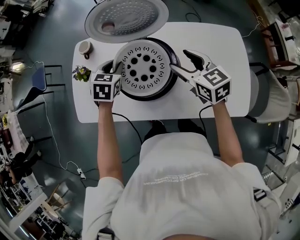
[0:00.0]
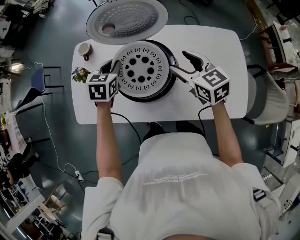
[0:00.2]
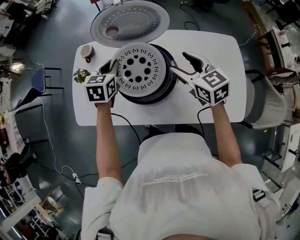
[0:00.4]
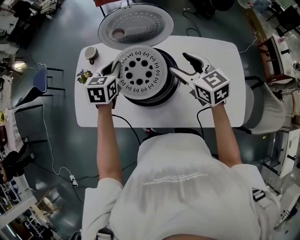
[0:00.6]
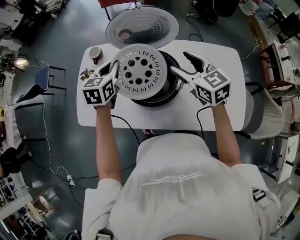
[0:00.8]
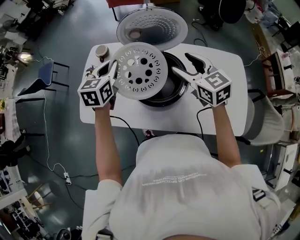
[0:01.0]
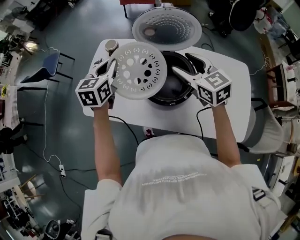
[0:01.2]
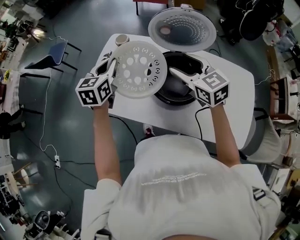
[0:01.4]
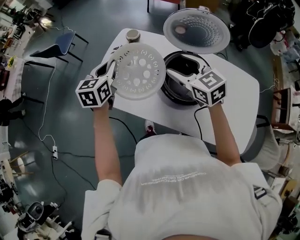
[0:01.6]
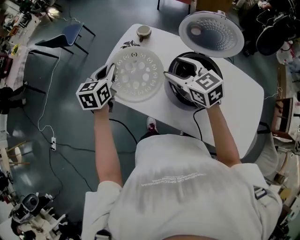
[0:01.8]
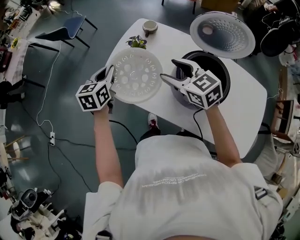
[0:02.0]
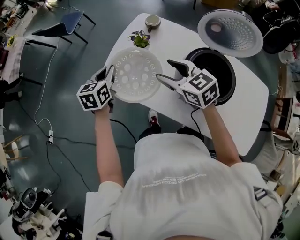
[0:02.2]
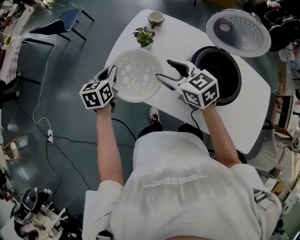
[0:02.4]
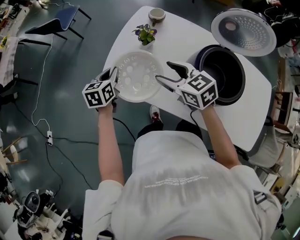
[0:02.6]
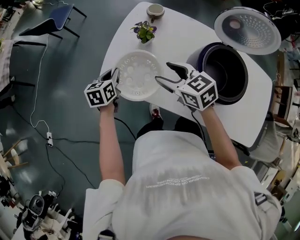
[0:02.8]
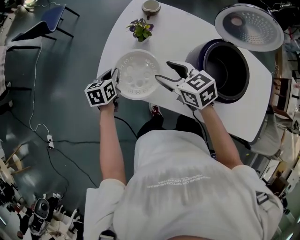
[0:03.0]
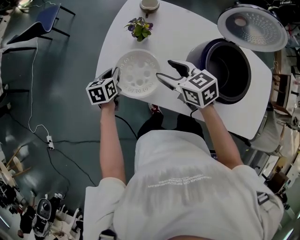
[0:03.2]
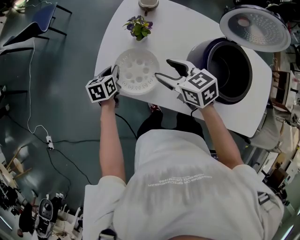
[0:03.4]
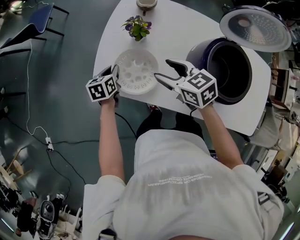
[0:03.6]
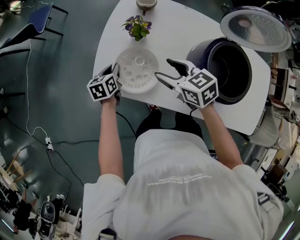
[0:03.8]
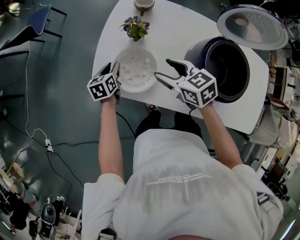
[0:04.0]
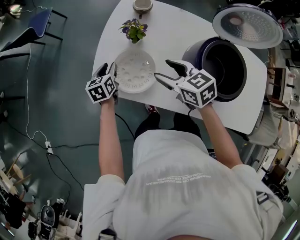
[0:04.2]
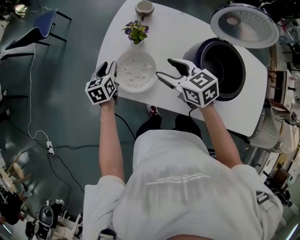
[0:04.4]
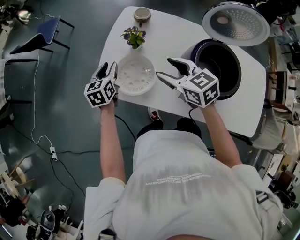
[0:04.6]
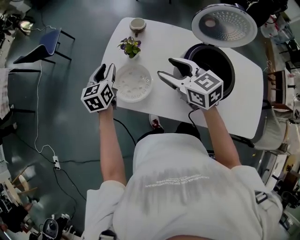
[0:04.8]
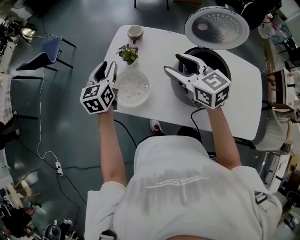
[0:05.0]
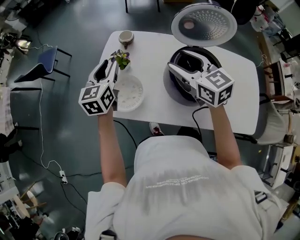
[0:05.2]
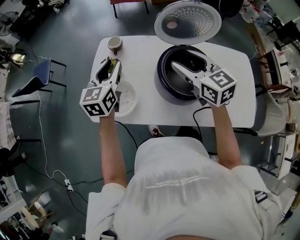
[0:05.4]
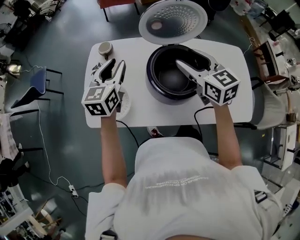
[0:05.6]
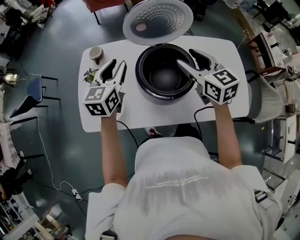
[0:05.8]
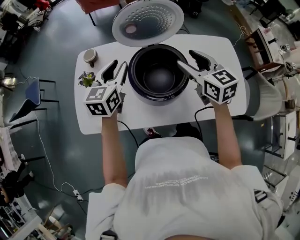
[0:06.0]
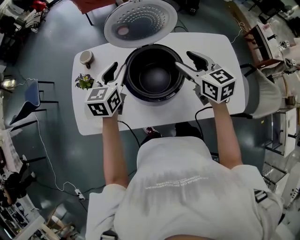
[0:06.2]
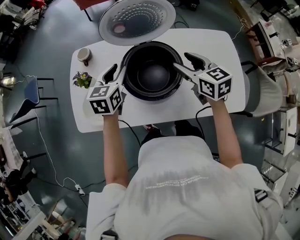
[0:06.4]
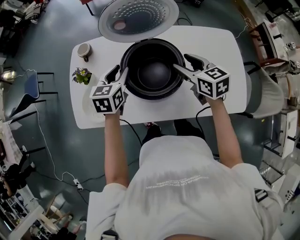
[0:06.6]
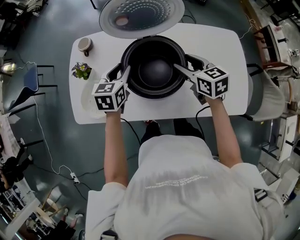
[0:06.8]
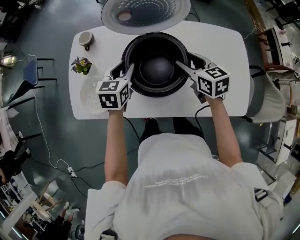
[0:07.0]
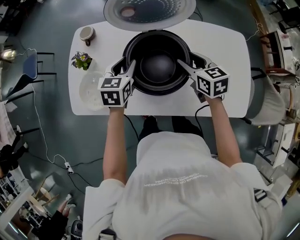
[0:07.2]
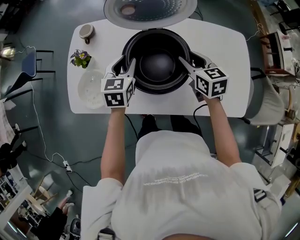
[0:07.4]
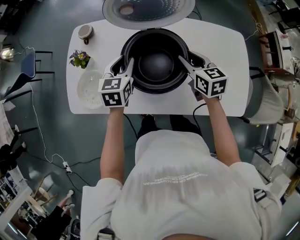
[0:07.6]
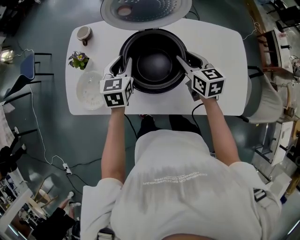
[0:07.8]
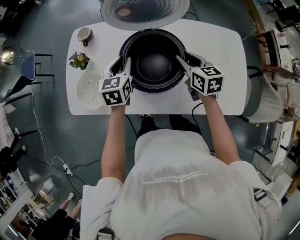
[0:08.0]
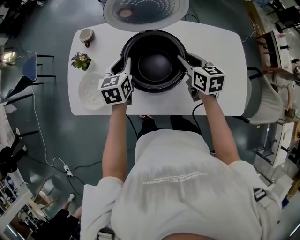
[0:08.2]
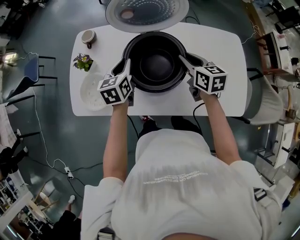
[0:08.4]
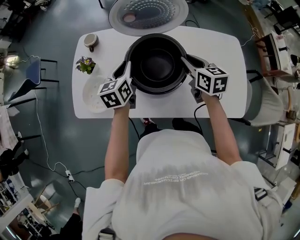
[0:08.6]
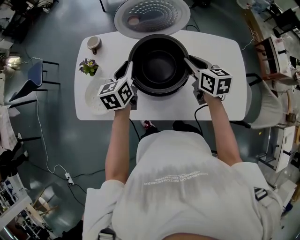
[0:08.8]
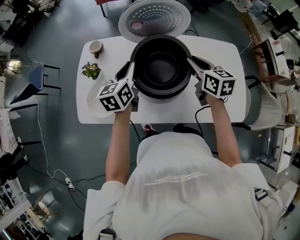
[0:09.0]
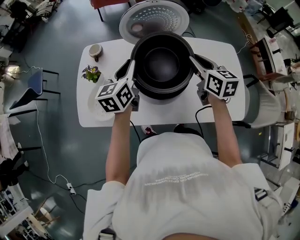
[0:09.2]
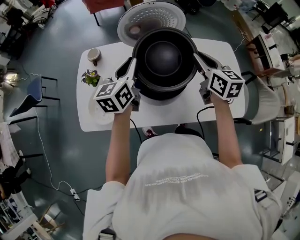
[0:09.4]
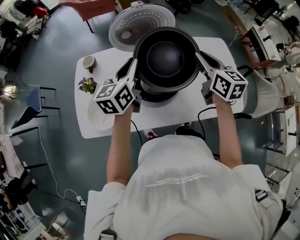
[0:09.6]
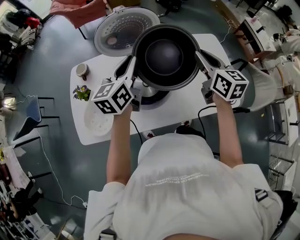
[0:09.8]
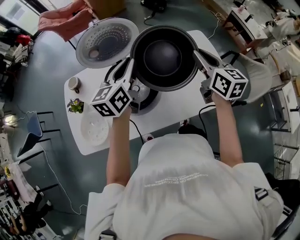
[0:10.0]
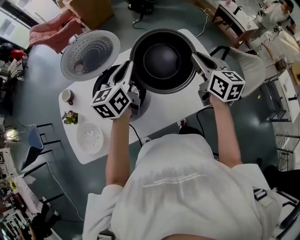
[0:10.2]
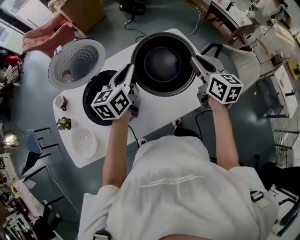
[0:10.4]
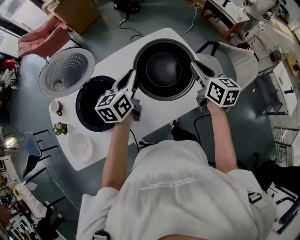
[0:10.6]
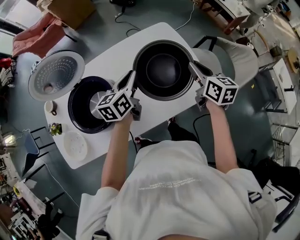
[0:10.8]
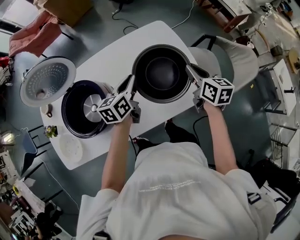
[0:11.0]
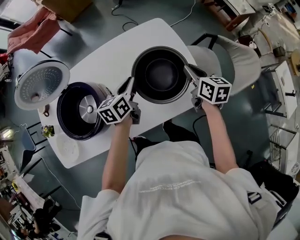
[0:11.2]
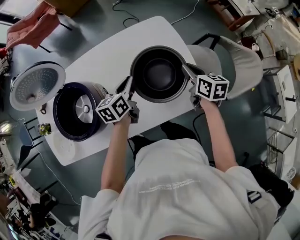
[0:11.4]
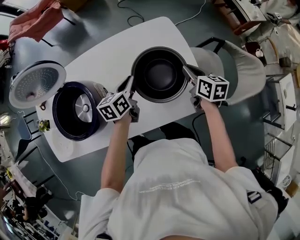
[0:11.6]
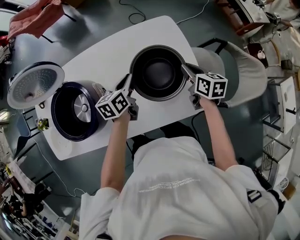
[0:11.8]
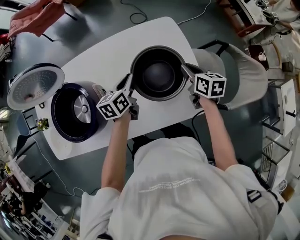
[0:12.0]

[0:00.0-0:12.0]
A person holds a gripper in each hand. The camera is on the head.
0:00.0 to 0:01.6: Both grippers travel together to the left and upward, roughly 25 cm. The right gripper changes its angle by about 30 degrees. Meanwhile the left gripper turns by approximately 40 degrees.
0:01.6 to 0:03.0: The left gripper is displaced downward and to the left by approximately 30 cm, and turns by about 30 degrees, while the right gripper goes about 25 cm to the left and downward, and changes its angle by approximately 20 degrees.
0:03.0 to 0:04.4: The left gripper opens.
0:04.4 to 0:06.0: The left gripper changes place by approximately 40 cm, and changes its angle by roughly 40 degrees. The right gripper changes place by about 35 cm, and turns by about 40 degrees.
0:06.0 to 0:07.6: Both grippers travel together downward, about 10 cm. The right gripper closes up.
0:07.6 to 0:09.0: Both grippers move upward, about 5 cm. The left gripper turns by about 20 degrees.
0:09.0 to 0:10.4: The right gripper changes place by some 30 cm, and turns by roughly 30 degrees, while the left gripper moves approximately 30 cm, and rotates about 30 degrees.
0:10.4 to 0:12.0: The right gripper travels downward, forward and to the right by some 30 cm, and turns by about 30 degrees. Meanwhile the left gripper heads downward and to the right, covering roughly 25 cm, and swivels about 30 degrees.

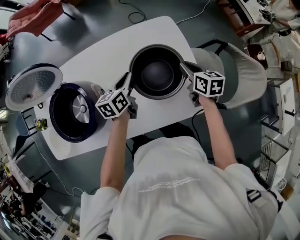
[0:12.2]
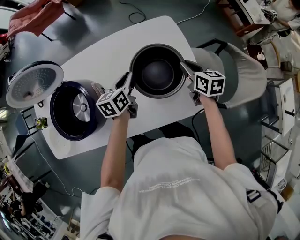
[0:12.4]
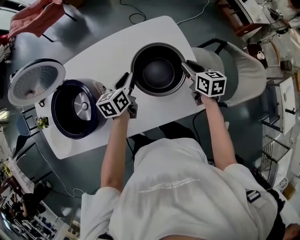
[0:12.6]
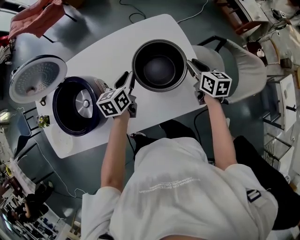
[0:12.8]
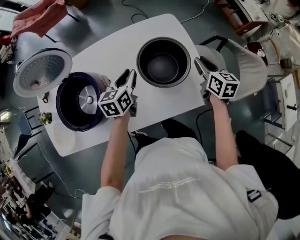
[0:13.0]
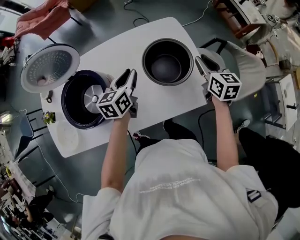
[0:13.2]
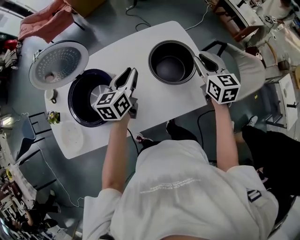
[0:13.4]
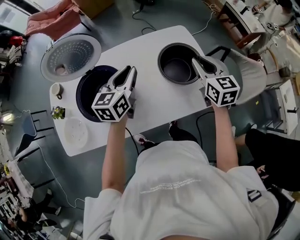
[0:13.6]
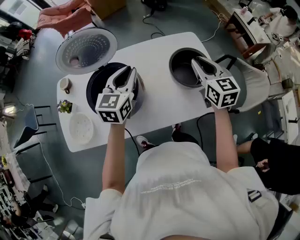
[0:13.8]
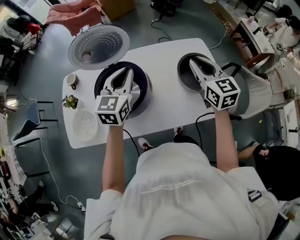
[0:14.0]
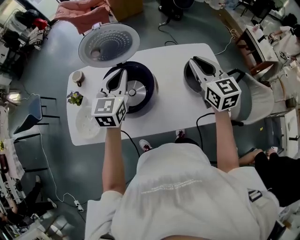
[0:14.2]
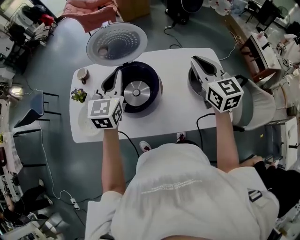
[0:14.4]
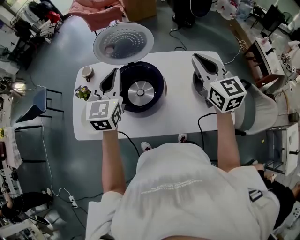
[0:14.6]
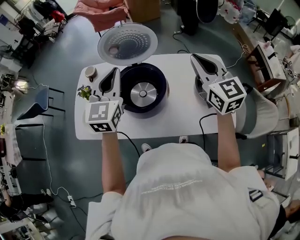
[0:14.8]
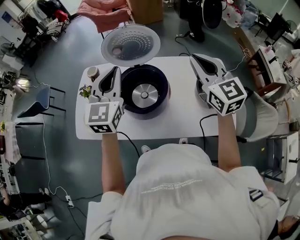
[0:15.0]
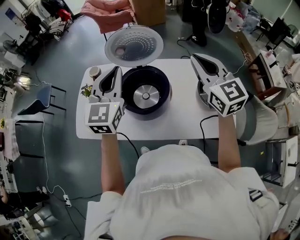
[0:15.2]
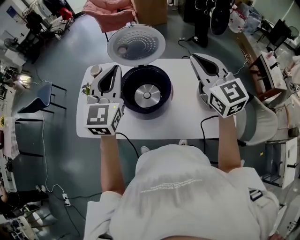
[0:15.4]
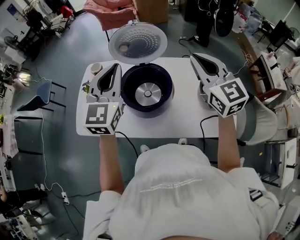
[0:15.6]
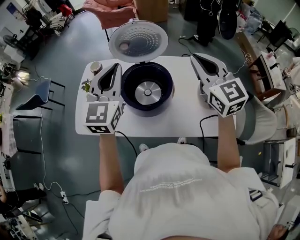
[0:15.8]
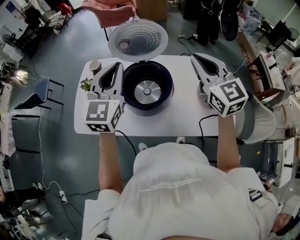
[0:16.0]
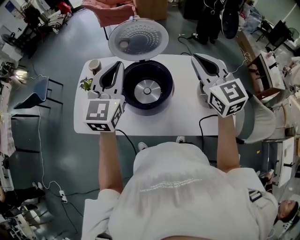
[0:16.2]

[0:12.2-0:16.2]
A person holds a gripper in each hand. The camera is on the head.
0:12.2 to 0:13.6: The grippers both shift upward and to the left by some 20 cm. The left gripper turns by about 30 degrees, while the right gripper turns by some 30 degrees.
0:13.6 to 0:14.8: Both grippers move to the left and upward, some 25 cm. The left gripper changes its angle by some 40 degrees. The right gripper changes its angle by about 30 degrees.
0:14.8 to 0:16.2: The right gripper heads to the left, covering approximately 5 cm.

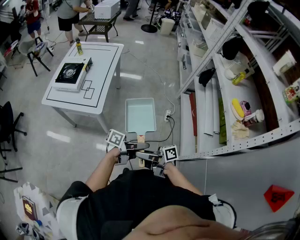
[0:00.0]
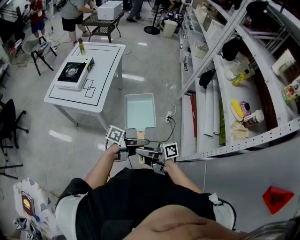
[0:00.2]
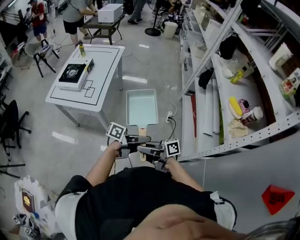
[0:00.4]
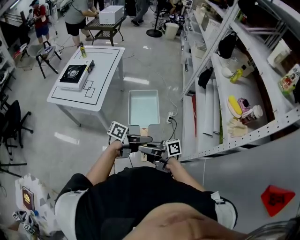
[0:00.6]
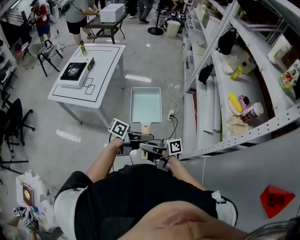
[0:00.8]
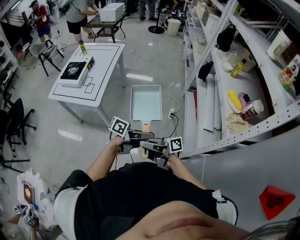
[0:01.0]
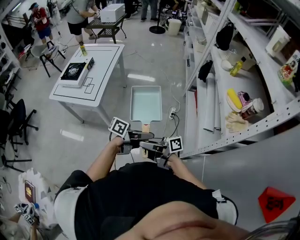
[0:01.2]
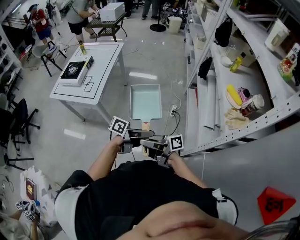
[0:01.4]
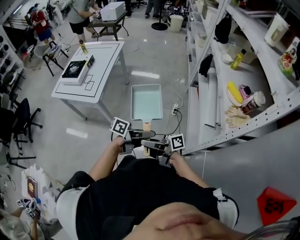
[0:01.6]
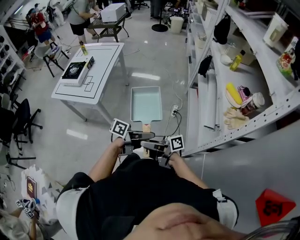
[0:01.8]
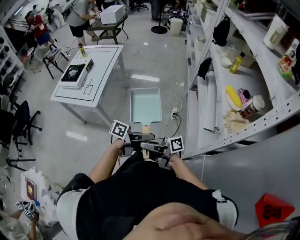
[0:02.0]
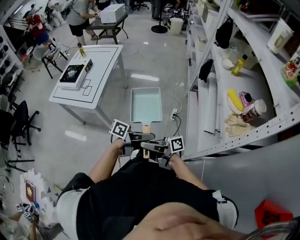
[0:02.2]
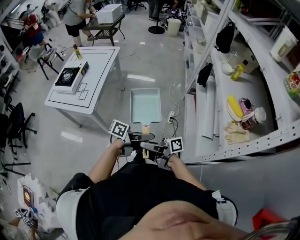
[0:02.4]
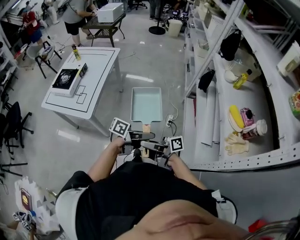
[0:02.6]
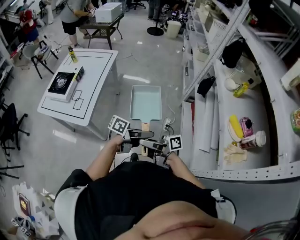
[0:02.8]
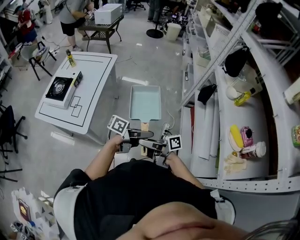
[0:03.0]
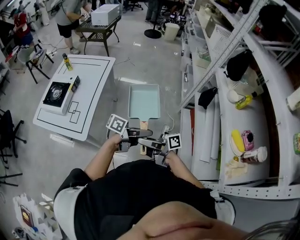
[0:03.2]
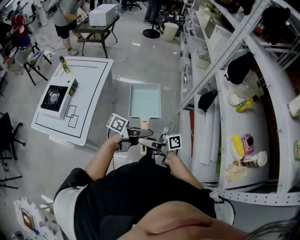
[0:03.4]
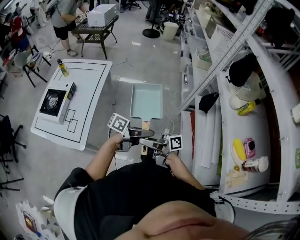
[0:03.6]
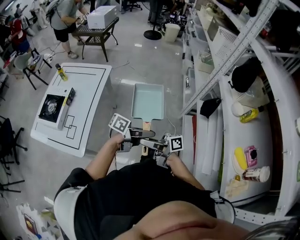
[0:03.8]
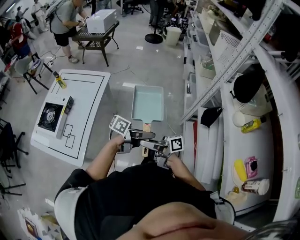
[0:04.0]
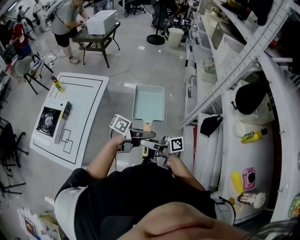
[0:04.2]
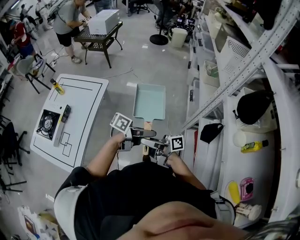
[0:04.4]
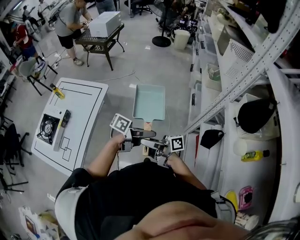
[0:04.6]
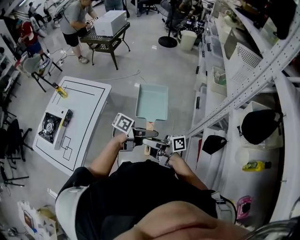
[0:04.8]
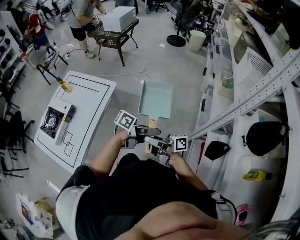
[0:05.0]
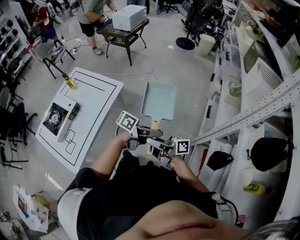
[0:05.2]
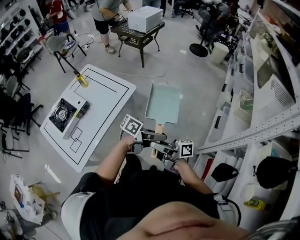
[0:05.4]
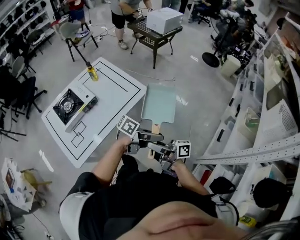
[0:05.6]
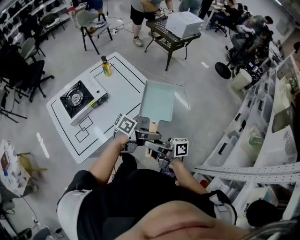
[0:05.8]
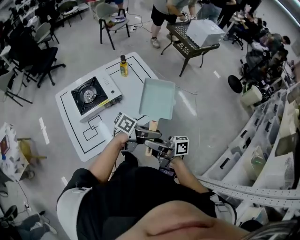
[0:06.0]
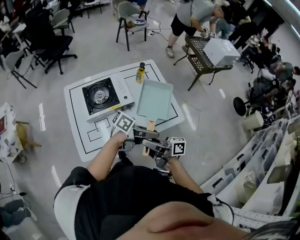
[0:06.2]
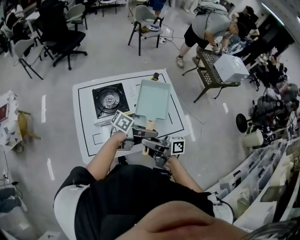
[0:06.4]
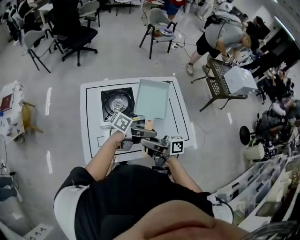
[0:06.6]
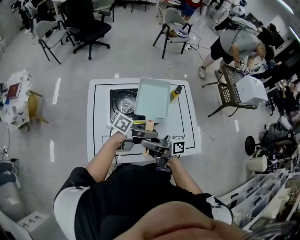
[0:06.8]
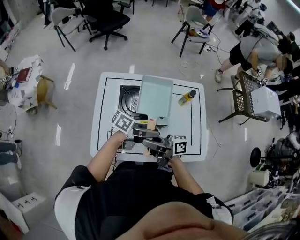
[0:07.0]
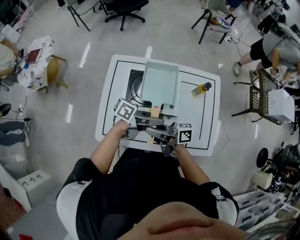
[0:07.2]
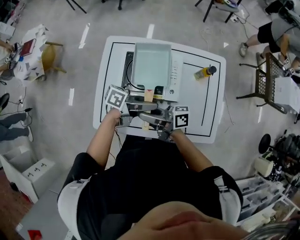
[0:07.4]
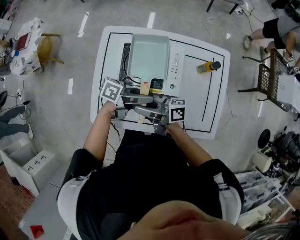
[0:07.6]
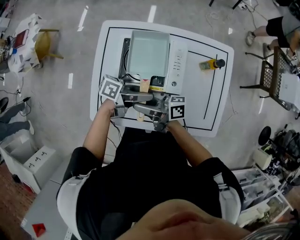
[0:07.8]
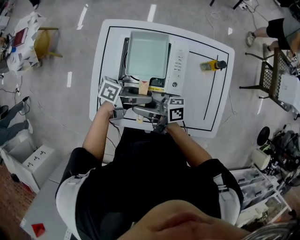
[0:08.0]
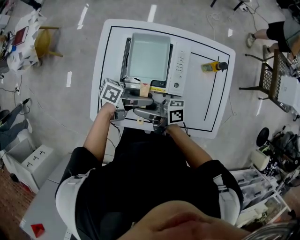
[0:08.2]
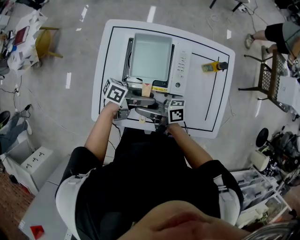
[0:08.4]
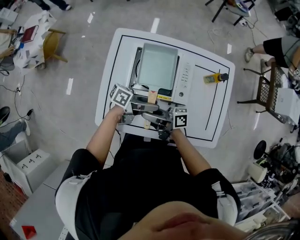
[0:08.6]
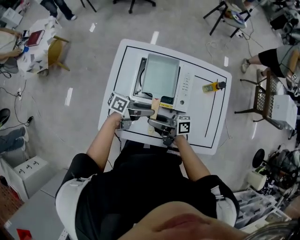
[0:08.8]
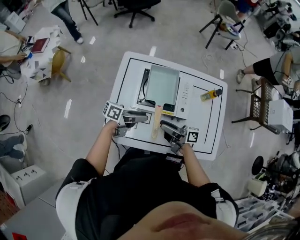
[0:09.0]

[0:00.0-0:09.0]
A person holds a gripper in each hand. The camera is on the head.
0:00.0 to 0:01.6: The right gripper moves roughly 15 cm. Meanwhile the left gripper ends up some 15 cm from where it was.
0:01.6 to 0:03.0: The left gripper shifts by some 25 cm. The right gripper moves roughly 25 cm.
0:03.0 to 0:04.4: The right gripper moves some 35 cm; the left gripper ends up about 35 cm from where it was.
0:04.4 to 0:06.0: The left gripper moves approximately 35 cm, and turns by about 40 degrees. Meanwhile the right gripper changes place by approximately 30 cm, and turns by about 40 degrees.
0:06.0 to 0:07.6: The left gripper moves some 40 cm, and changes its angle by some 50 degrees. Meanwhile the right gripper ends up roughly 35 cm from where it was, and turns by some 50 degrees.
0:07.6 to 0:09.0: The right gripper travels downward by about 5 cm. The left gripper changes place by roughly 10 cm.
